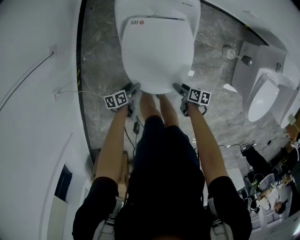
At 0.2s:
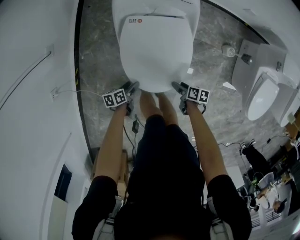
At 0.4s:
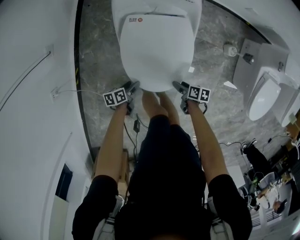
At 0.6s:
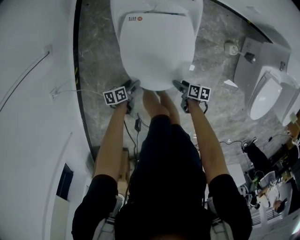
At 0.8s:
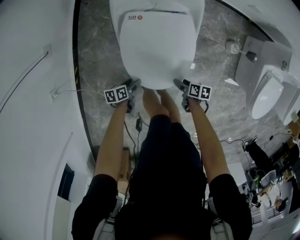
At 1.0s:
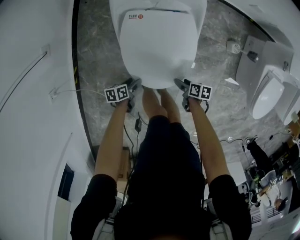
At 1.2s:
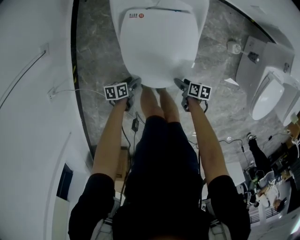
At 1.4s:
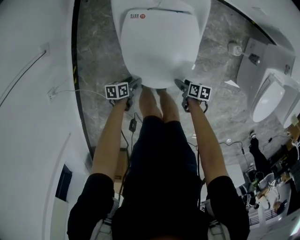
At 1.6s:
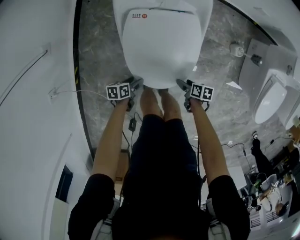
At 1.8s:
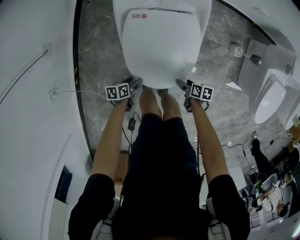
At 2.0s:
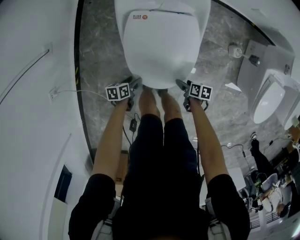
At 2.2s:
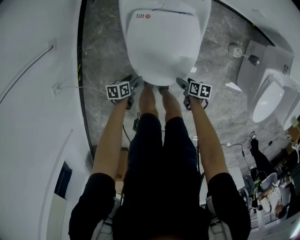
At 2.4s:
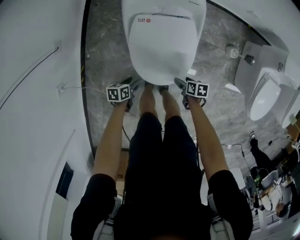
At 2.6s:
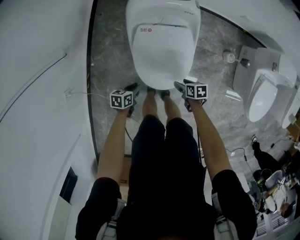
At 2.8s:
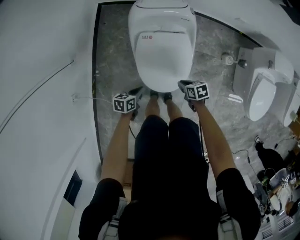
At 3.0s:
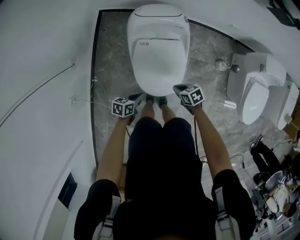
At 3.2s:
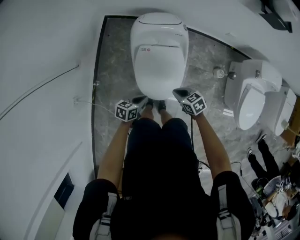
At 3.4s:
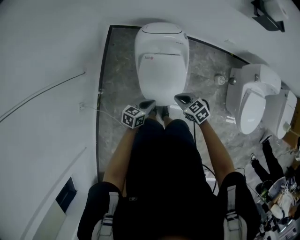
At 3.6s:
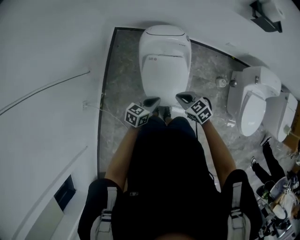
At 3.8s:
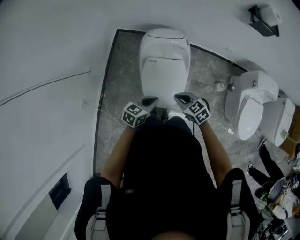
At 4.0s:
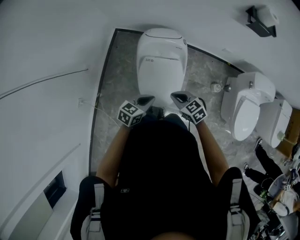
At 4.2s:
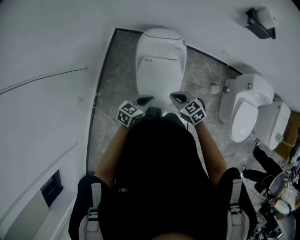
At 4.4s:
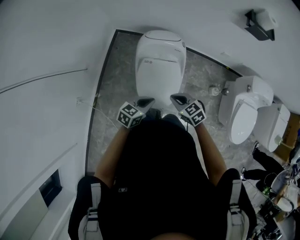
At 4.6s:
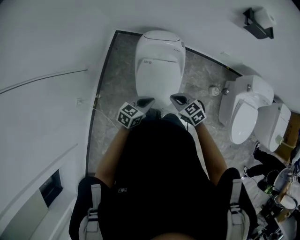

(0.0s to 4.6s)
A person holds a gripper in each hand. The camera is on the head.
0.0s - 1.6s: The two grippers go approximately 10 cm downward.
1.6s - 3.0s: Both grippers move upward, some 25 cm. The right gripper rolls counterclockwise, seen from behind, by approximately 40 degrees, and closes its fingers. Meanwhile the left gripper rotates approximately 20 degrees, and closes.
3.0s - 4.6s: Both grippers travel together upward, about 25 cm. The left gripper swivels some 30 degrees. Meanwhile the right gripper changes its angle by approximately 30 degrees.

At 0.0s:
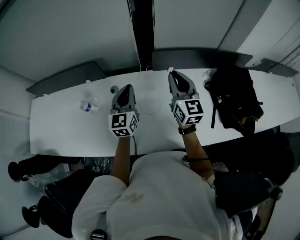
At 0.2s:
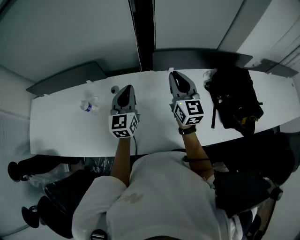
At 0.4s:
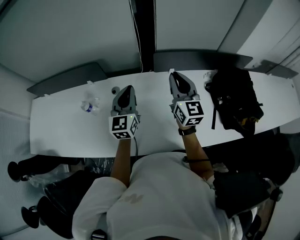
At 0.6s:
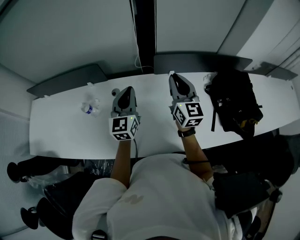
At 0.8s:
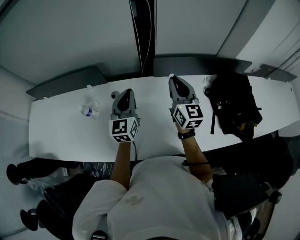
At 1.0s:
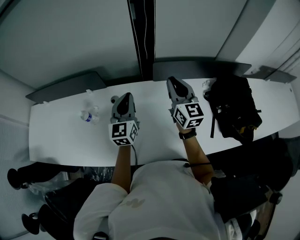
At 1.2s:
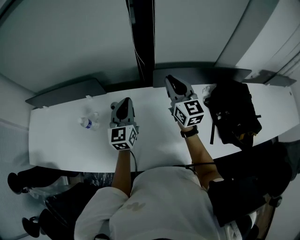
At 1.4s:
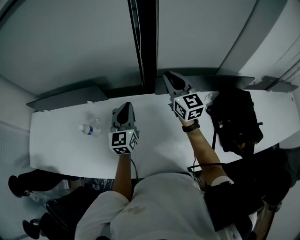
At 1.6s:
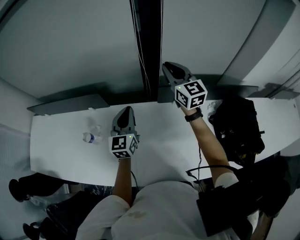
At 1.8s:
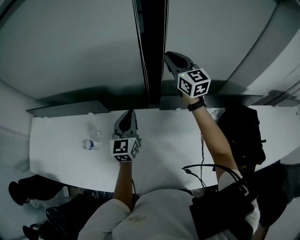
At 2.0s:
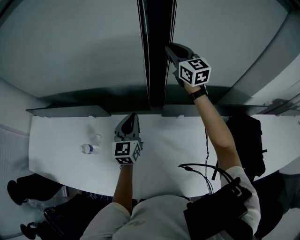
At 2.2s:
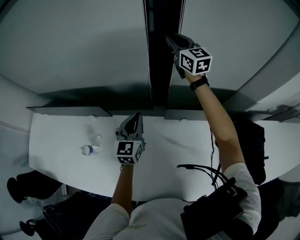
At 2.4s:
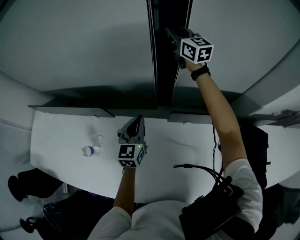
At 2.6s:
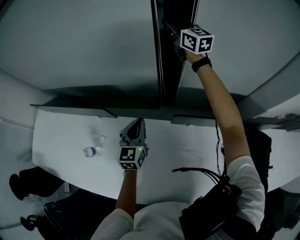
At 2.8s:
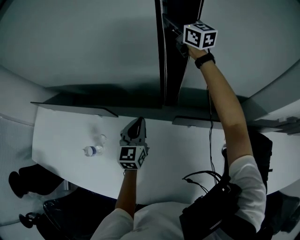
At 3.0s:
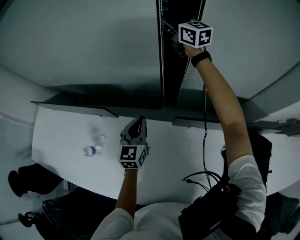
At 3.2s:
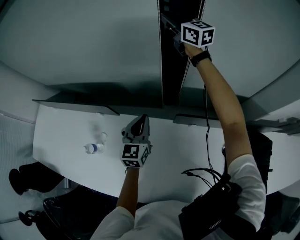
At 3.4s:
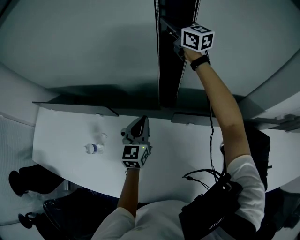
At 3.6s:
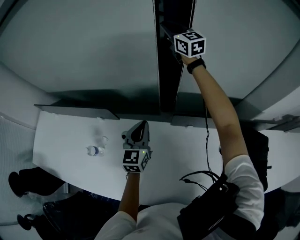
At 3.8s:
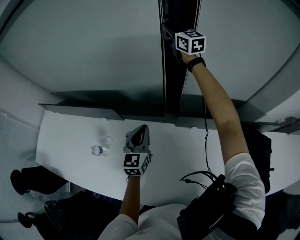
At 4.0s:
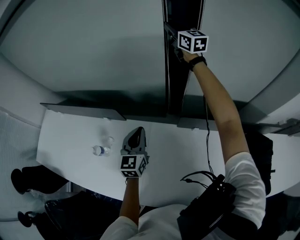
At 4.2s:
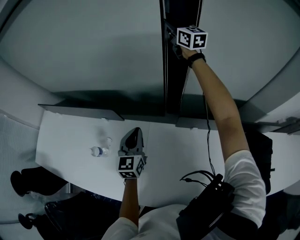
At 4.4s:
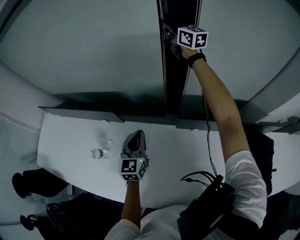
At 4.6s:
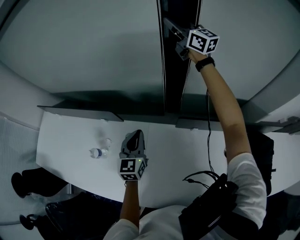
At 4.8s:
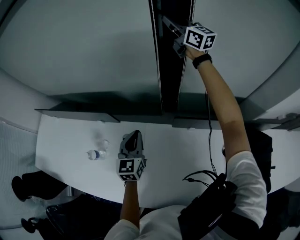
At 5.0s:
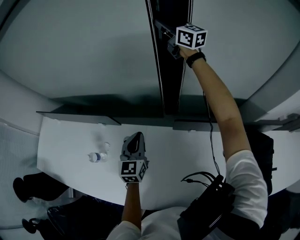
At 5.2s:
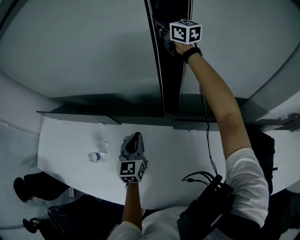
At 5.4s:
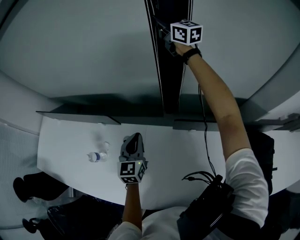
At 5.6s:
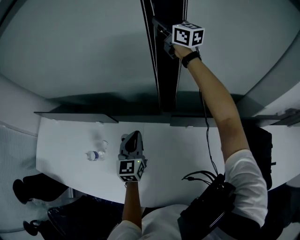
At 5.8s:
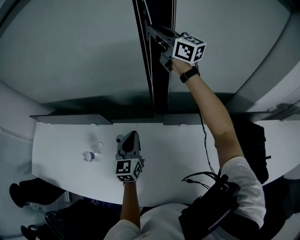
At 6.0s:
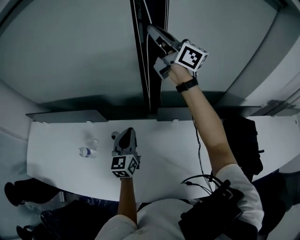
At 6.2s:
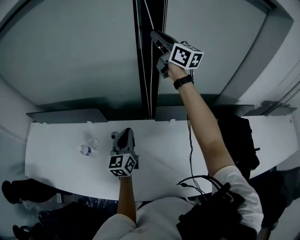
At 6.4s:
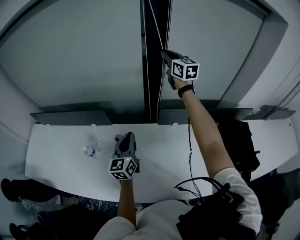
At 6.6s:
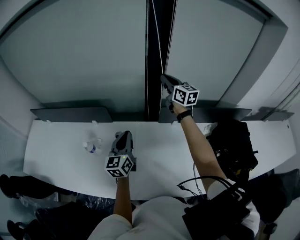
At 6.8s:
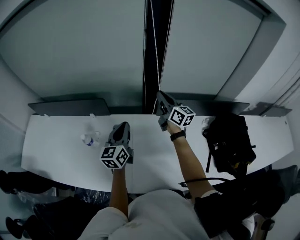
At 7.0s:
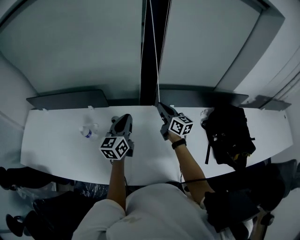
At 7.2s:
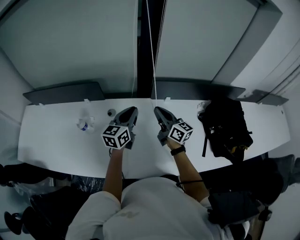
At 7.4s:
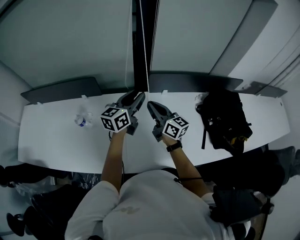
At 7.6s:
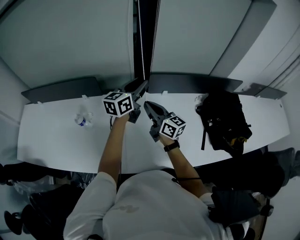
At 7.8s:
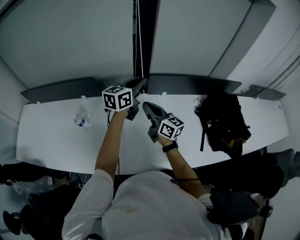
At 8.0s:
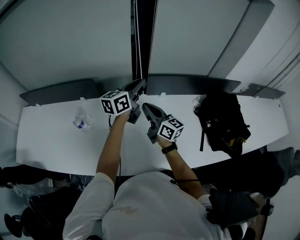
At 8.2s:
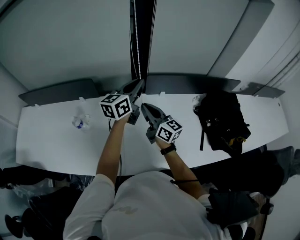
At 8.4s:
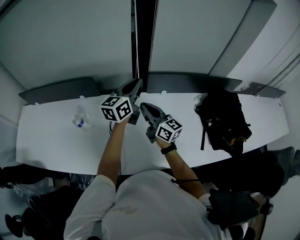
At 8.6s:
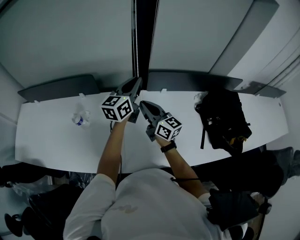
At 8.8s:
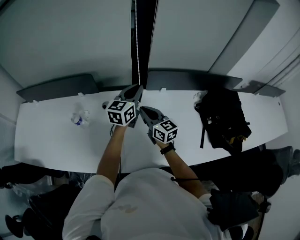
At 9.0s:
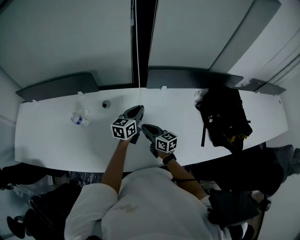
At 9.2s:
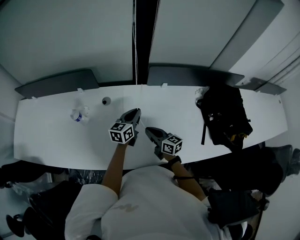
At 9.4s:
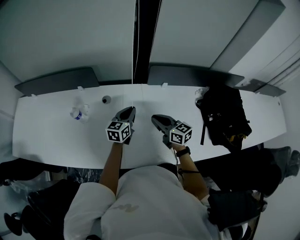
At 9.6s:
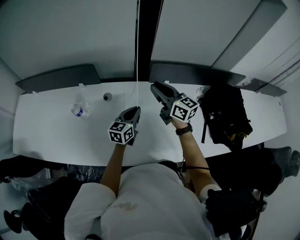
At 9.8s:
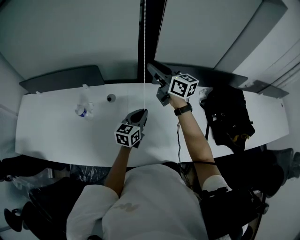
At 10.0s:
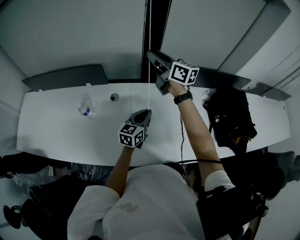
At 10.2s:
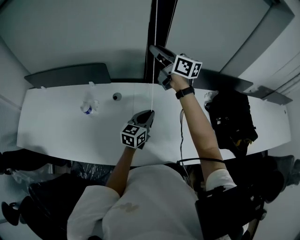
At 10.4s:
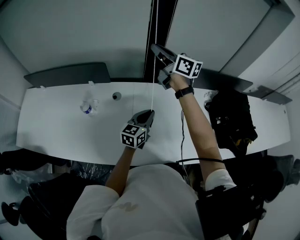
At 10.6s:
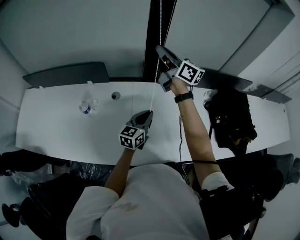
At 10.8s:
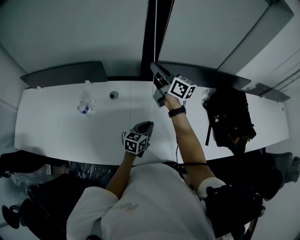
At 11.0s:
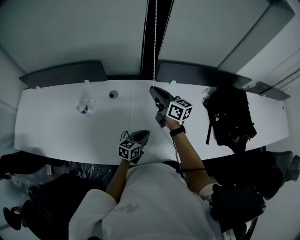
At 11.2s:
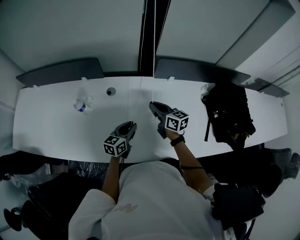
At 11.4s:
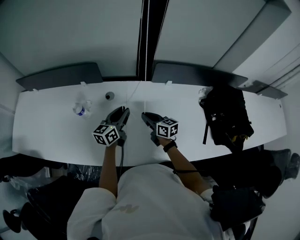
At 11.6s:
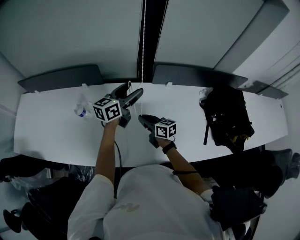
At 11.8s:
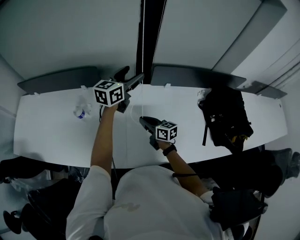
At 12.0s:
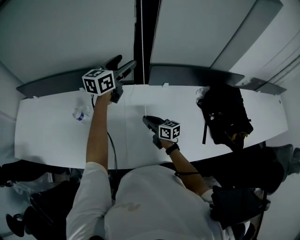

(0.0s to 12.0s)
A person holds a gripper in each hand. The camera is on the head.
0.0s - 1.6s: The right gripper moves forward, roughly 20 cm; the left gripper heads forward, covering some 10 cm.
1.6s - 3.0s: The left gripper heads forward and downward, covering about 15 cm. The right gripper shifts some 35 cm forward, rotates some 20 degrees, and opens.
3.0s - 4.4s: The left gripper travels backward by roughly 5 cm.
4.4s - 6.0s: The left gripper goes roughly 5 cm backward, while the right gripper swings forward and backward, about 25 cm each way, with 2 reversals, and turns by roughly 30 degrees.
6.0s - 7.6s: The right gripper shifts some 50 cm backward and downward, and changes its angle by some 30 degrees, while the left gripper travels upward, to the right and backward by approximately 10 cm, changes its angle by approximately 30 degrees, and opens up.
7.6s - 9.0s: Both grippers travel together downward, approximately 15 cm.
9.0s - 10.4s: The right gripper goes approximately 40 cm upward and forward, swivels some 20 degrees, and opens, then closes once more, while the left gripper heads backward, covering roughly 5 cm.
10.4s - 12.0s: The left gripper is displaced upward and forward by about 25 cm, and opens. The right gripper travels downward and backward by some 35 cm, and rotates some 20 degrees.

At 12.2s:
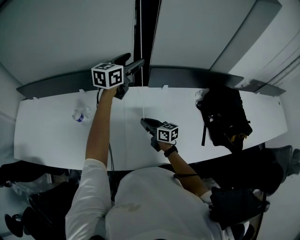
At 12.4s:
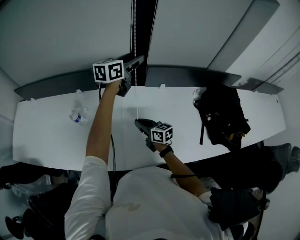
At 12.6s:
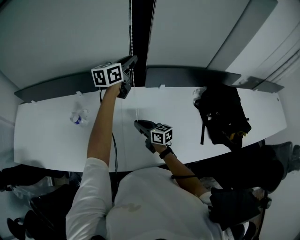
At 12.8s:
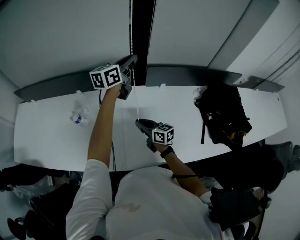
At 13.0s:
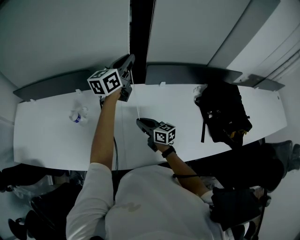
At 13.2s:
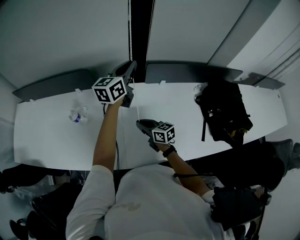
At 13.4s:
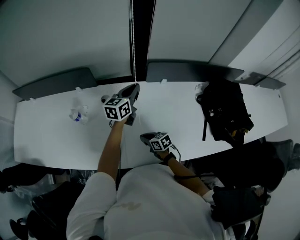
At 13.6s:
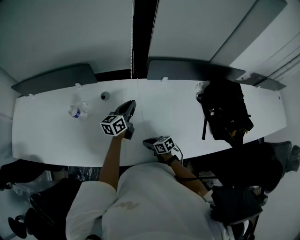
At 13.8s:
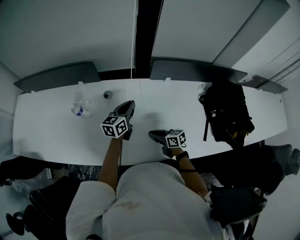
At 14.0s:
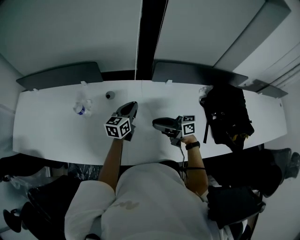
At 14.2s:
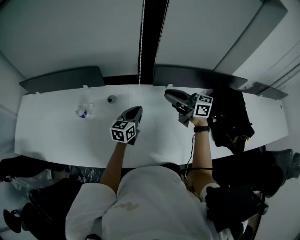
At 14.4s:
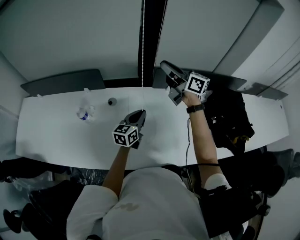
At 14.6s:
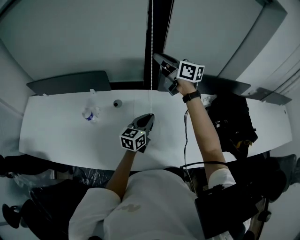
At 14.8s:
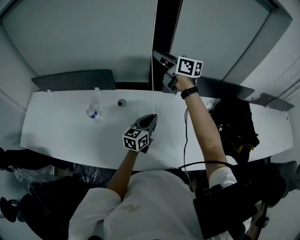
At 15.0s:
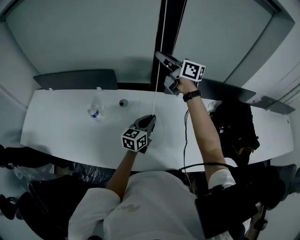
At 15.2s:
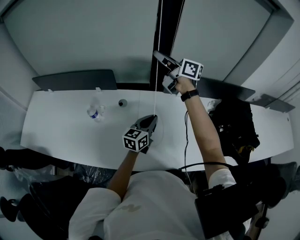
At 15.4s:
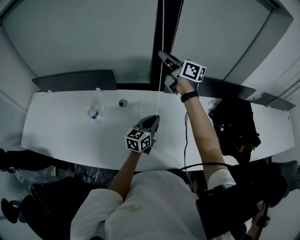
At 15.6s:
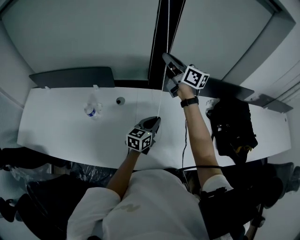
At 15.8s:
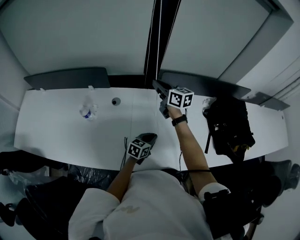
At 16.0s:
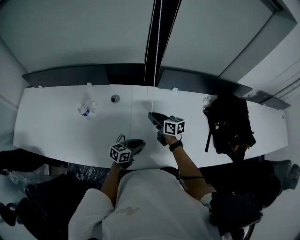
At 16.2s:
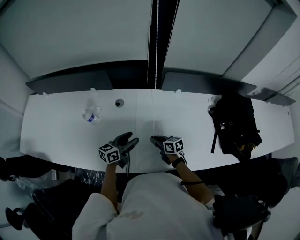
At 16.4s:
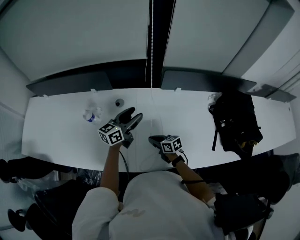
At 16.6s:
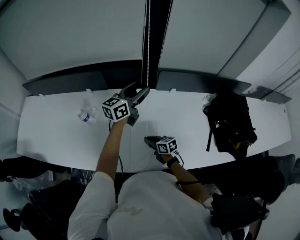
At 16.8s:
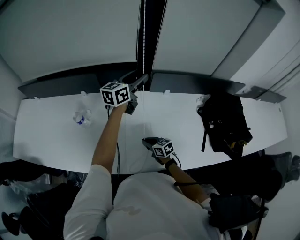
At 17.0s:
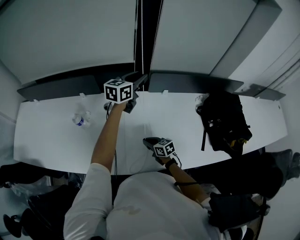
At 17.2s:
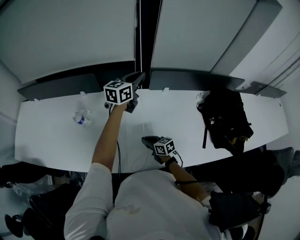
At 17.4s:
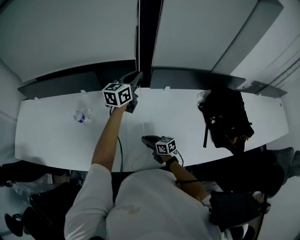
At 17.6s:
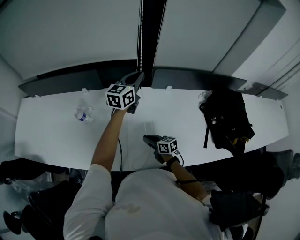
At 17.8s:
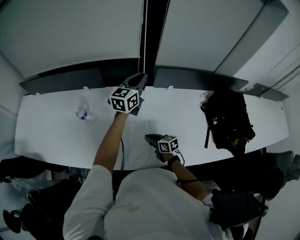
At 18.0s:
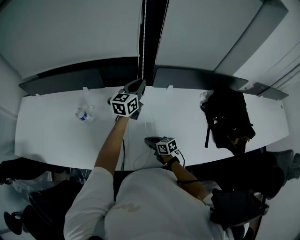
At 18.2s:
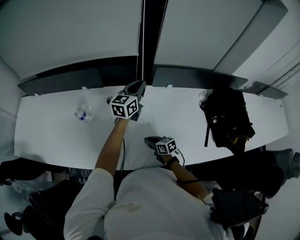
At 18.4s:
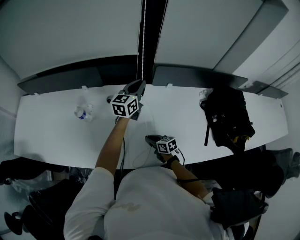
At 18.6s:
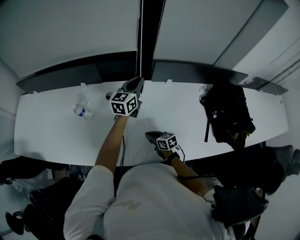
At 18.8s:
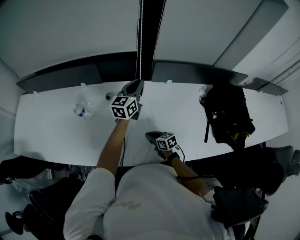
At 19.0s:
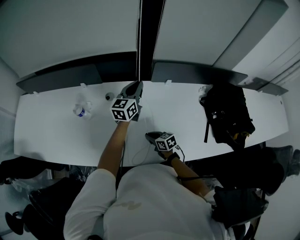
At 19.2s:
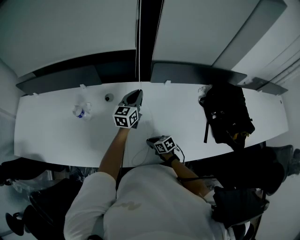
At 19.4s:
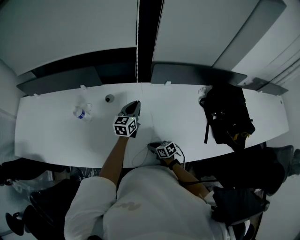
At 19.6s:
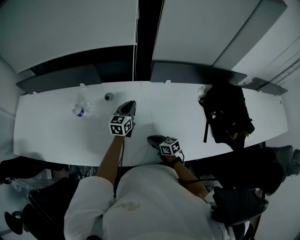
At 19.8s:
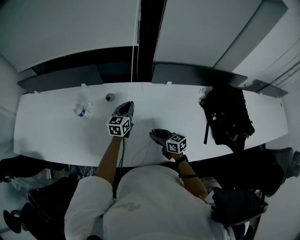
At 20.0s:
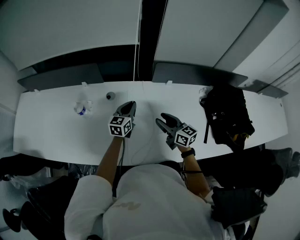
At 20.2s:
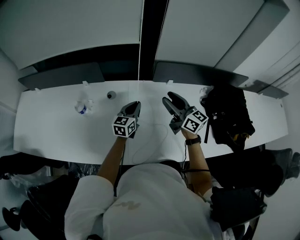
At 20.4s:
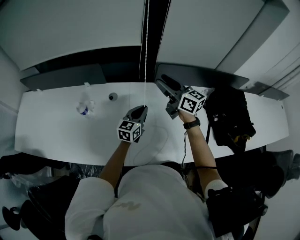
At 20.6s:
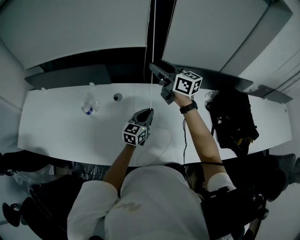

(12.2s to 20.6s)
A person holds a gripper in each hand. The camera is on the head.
12.2s - 13.6s: Both grippers move downward and backward, roughly 25 cm. The right gripper rotates about 30 degrees; the left gripper changes its angle by about 20 degrees, and closes up.
13.6s - 15.0s: The right gripper travels upward and forward by about 60 cm, and points its fingers about 50 degrees further upward, while the left gripper shifts approximately 10 cm backward and upward.
15.0s - 16.4s: The right gripper moves downward and backward, roughly 50 cm, and points its fingers some 40 degrees further downward. Meanwhile the left gripper is displaced to the left by approximately 5 cm, goes downward and returns, about 15 cm each way, and opens up.
16.4s - 17.8s: The left gripper goes about 15 cm forward, upward and to the right, and closes its fingers.
17.8s - 19.2s: The left gripper moves downward, roughly 10 cm; the right gripper travels downward by roughly 5 cm.
19.2s - 20.6s: The left gripper heads backward, covering approximately 10 cm. Meanwhile the right gripper shifts roughly 50 cm upward and forward, angles its fingers upward, by some 50 degrees, and opens its fingers.
